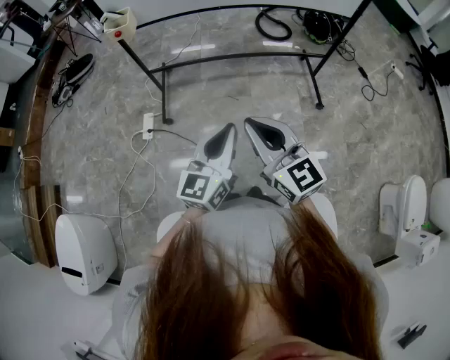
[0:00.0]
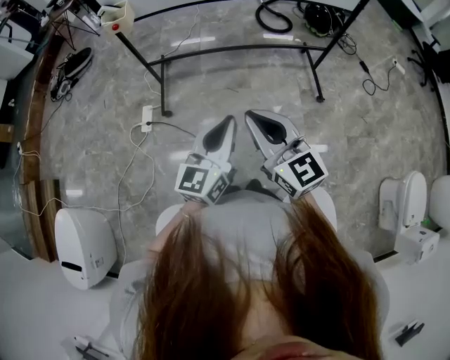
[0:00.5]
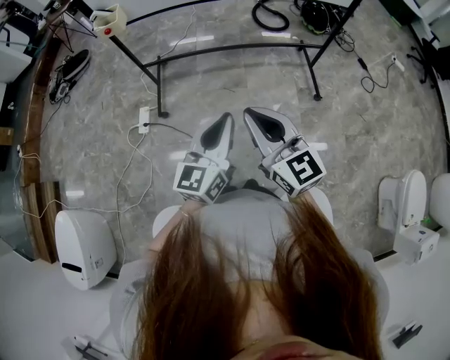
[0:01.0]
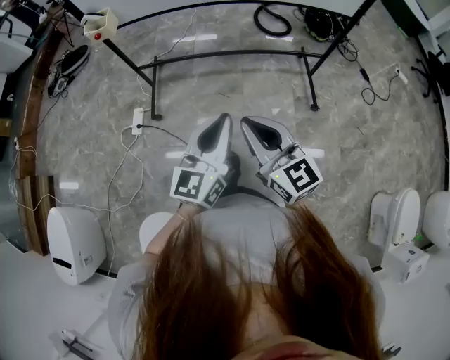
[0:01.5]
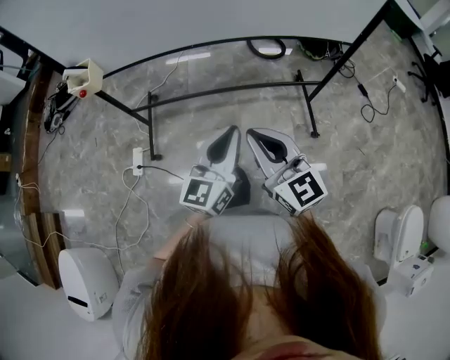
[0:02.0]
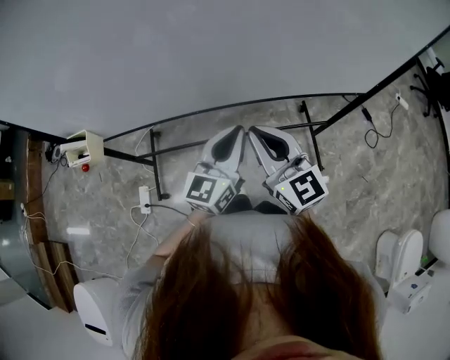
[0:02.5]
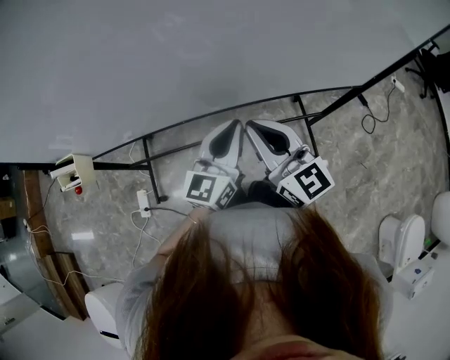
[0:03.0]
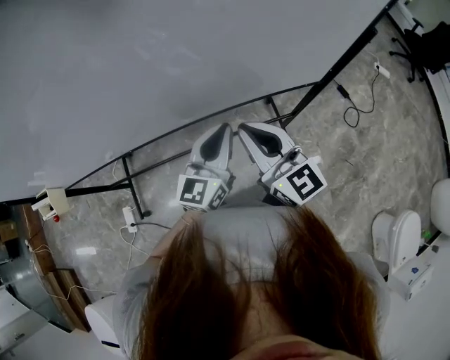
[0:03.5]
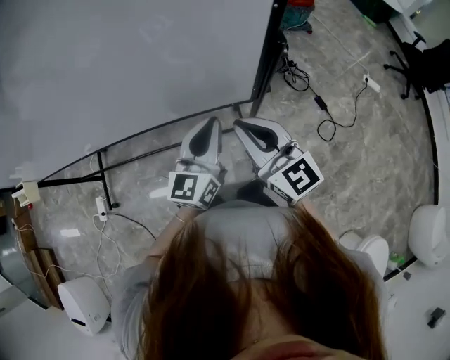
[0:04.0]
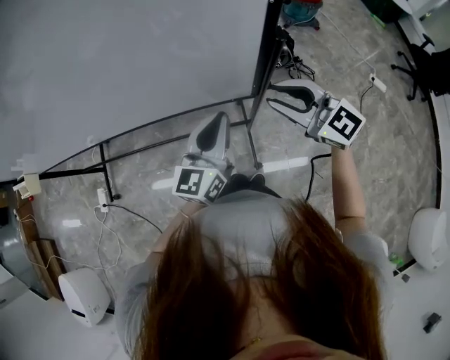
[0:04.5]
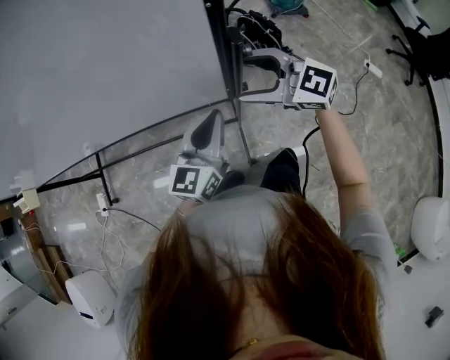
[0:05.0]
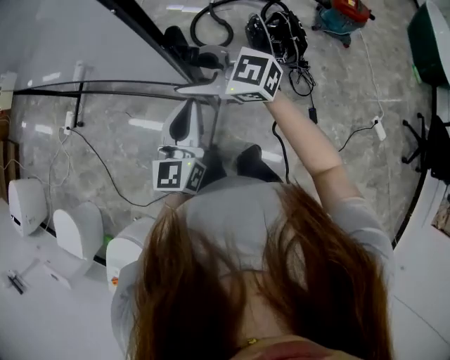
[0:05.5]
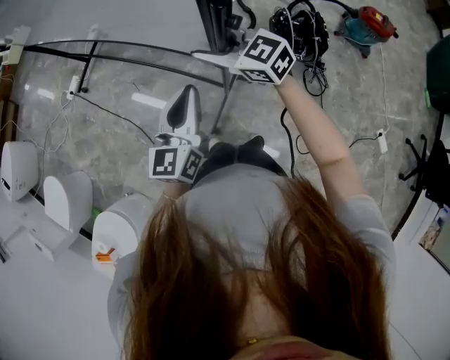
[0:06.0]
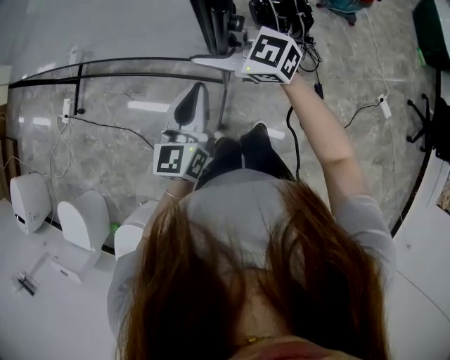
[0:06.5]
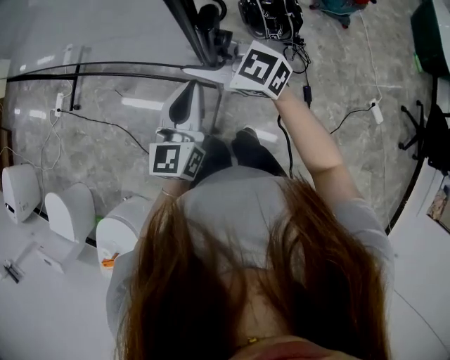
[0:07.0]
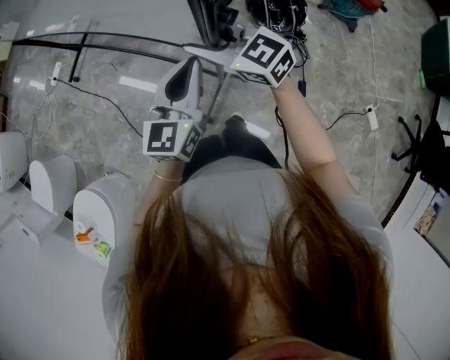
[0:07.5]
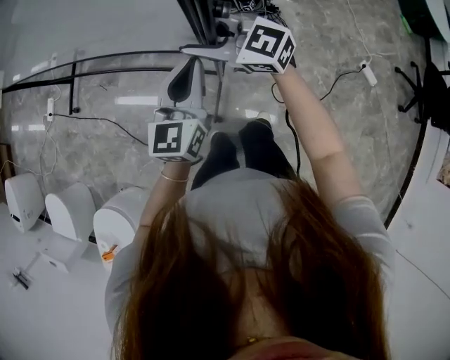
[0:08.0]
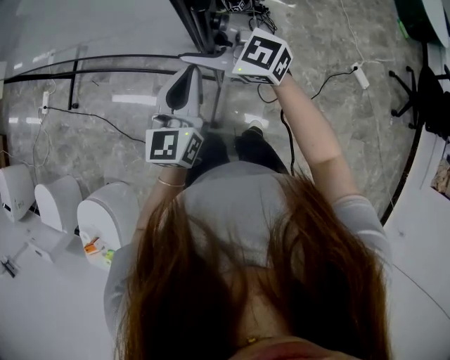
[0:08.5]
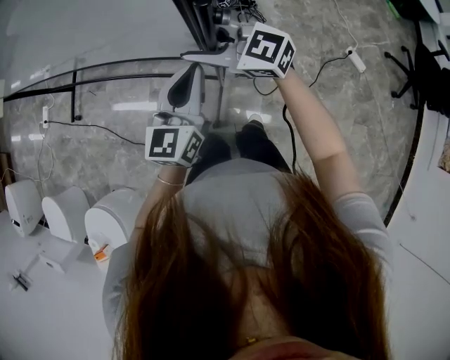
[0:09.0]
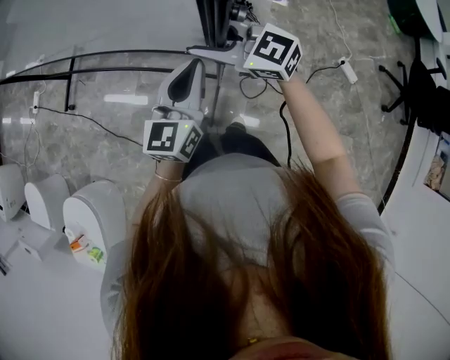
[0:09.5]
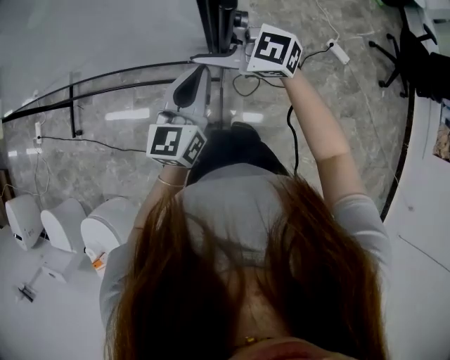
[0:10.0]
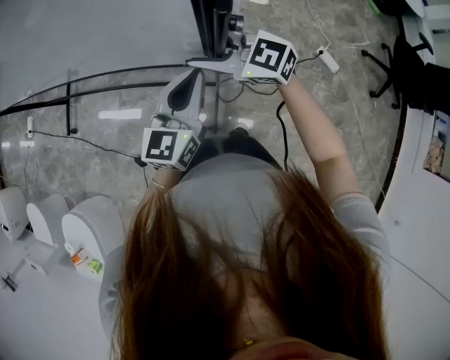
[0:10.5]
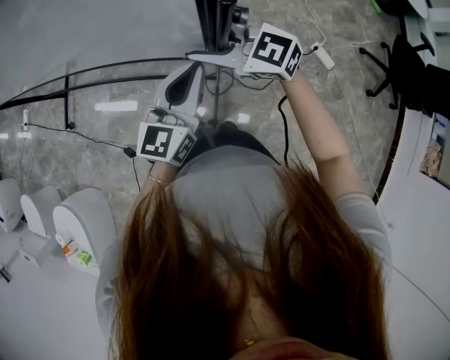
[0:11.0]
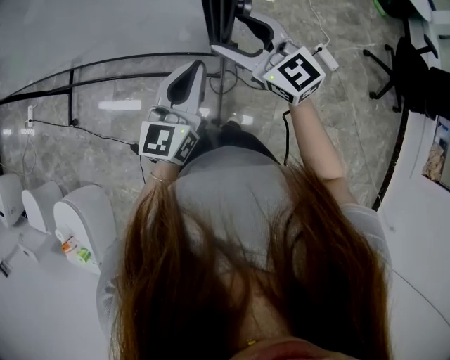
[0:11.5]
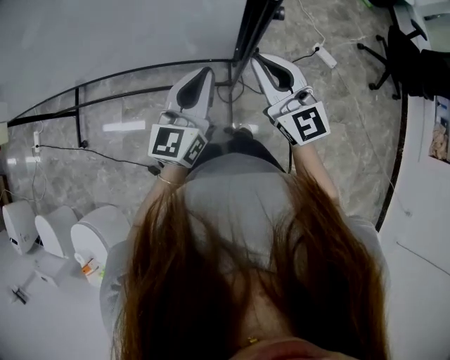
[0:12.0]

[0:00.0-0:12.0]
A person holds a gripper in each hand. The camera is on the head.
0:00.0 to 0:02.0: The grippers both shift forward and to the right by some 25 cm.
0:02.0 to 0:04.0: The two grippers travel together, to the right and forward, some 50 cm.
0:04.0 to 0:06.0: The left gripper moves approximately 10 cm, and swivels some 40 degrees. The right gripper travels downward by approximately 10 cm, rotates approximately 60 degrees, and opens up.
0:06.0 to 0:08.0: Both grippers move backward and to the right, roughly 25 cm.
0:08.0 to 0:10.0: Both grippers travel together to the right and backward, some 25 cm.
0:10.0 to 0:12.0: The left gripper changes place by some 10 cm, while the right gripper changes place by roughly 20 cm, changes its angle by some 50 degrees, and closes.

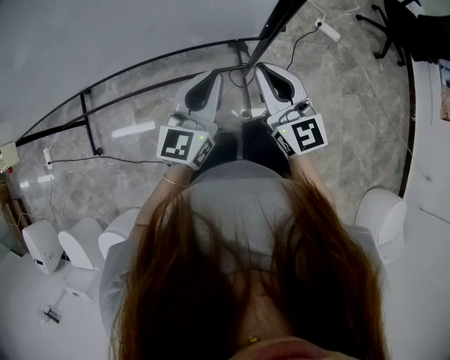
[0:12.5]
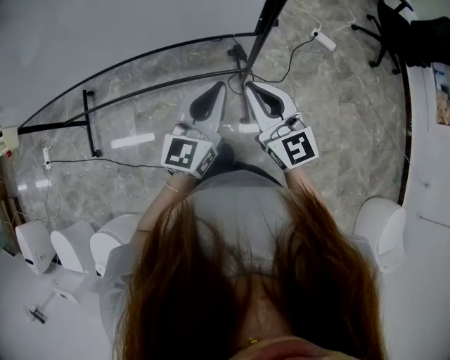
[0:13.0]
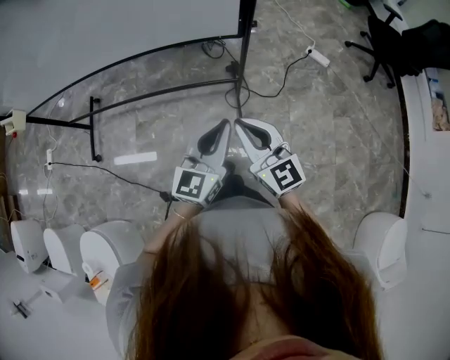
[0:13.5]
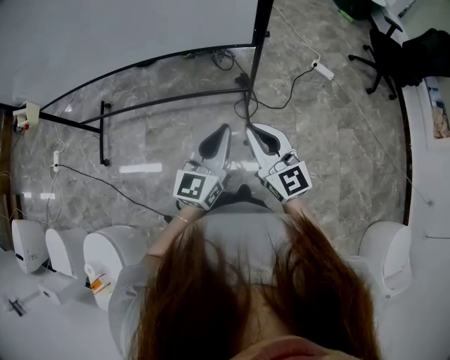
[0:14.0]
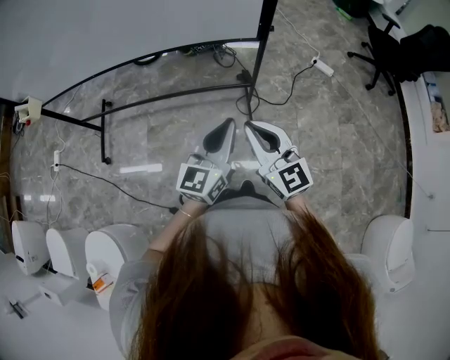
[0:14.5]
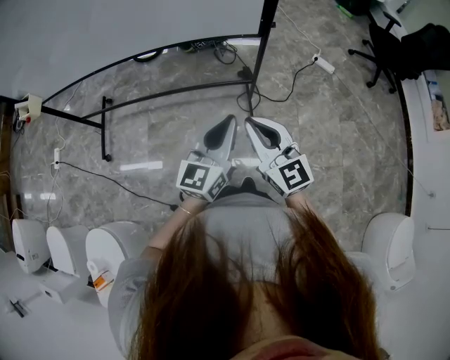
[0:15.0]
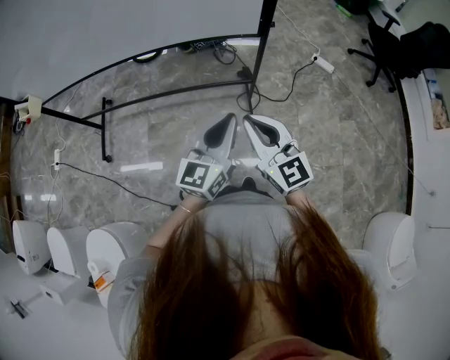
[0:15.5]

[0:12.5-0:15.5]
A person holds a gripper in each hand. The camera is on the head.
0:12.5 to 0:14.0: Both grippers travel together backward, approximately 25 cm.
0:14.0 to 0:15.5: The grippers move only a little.

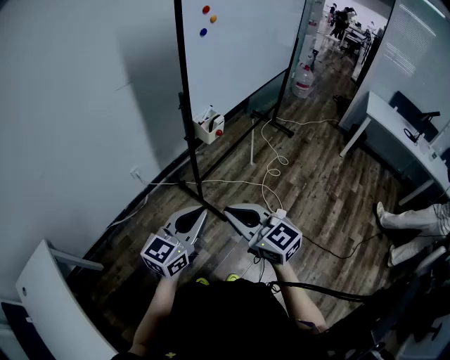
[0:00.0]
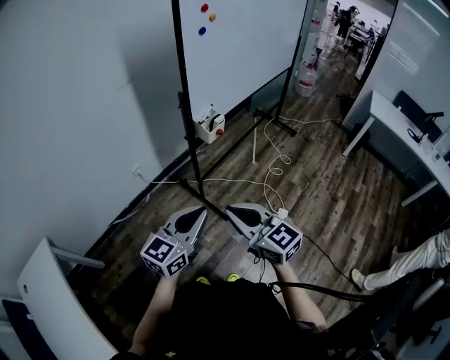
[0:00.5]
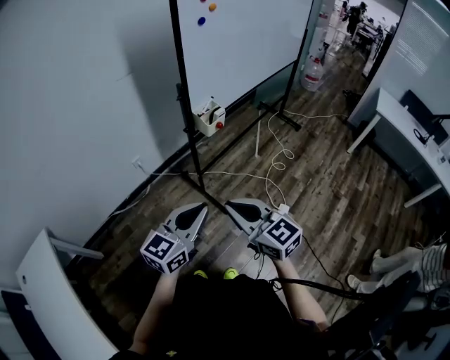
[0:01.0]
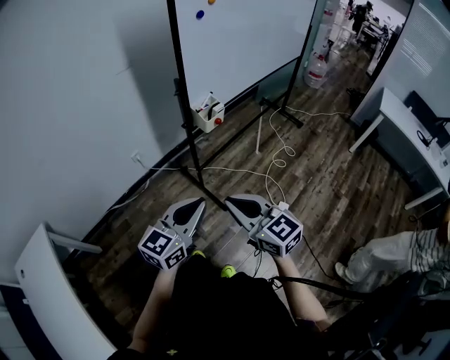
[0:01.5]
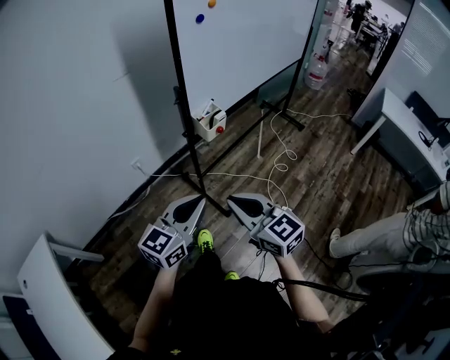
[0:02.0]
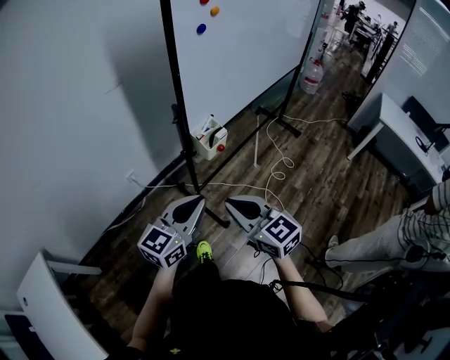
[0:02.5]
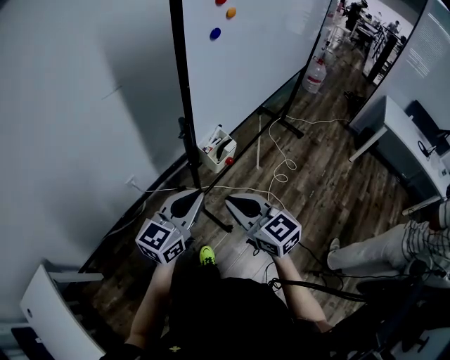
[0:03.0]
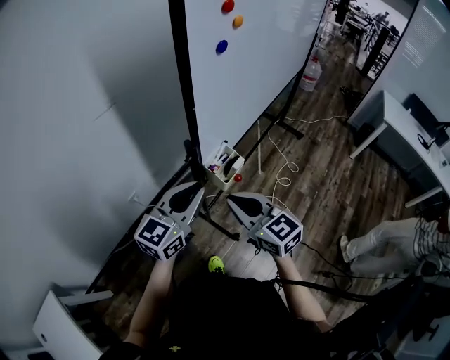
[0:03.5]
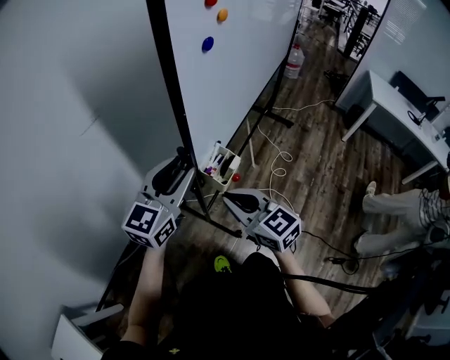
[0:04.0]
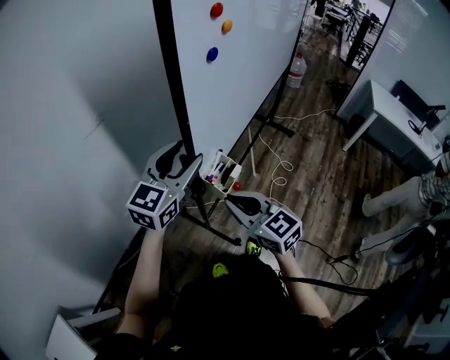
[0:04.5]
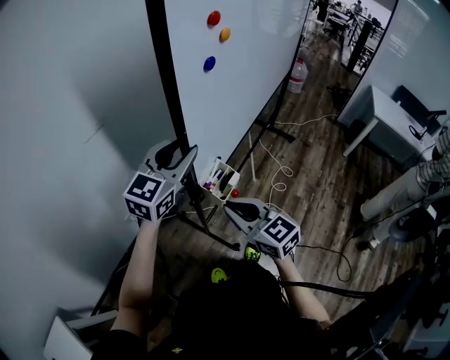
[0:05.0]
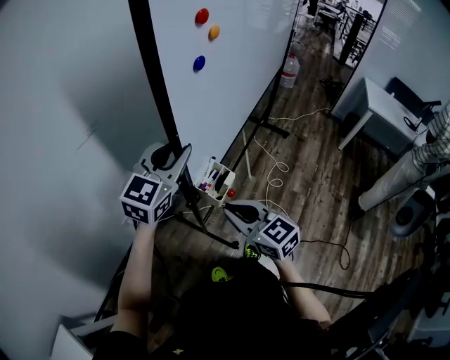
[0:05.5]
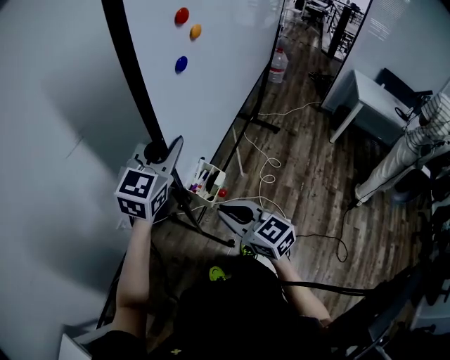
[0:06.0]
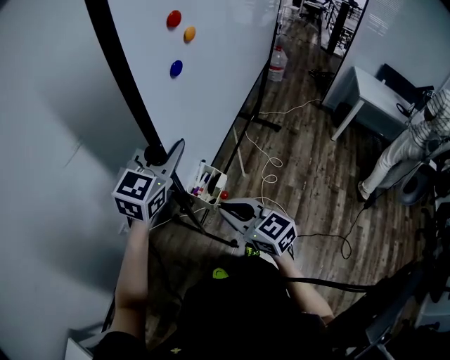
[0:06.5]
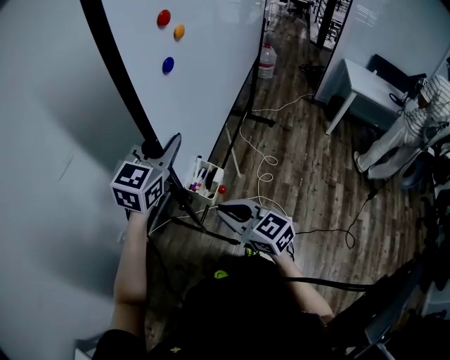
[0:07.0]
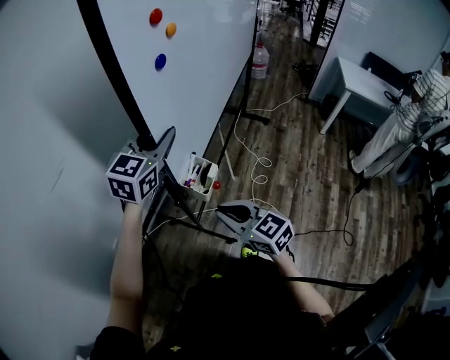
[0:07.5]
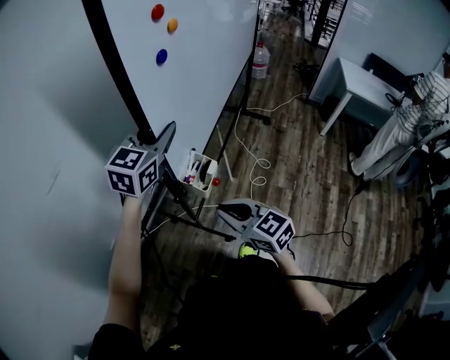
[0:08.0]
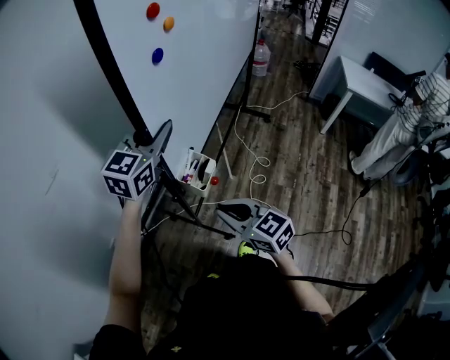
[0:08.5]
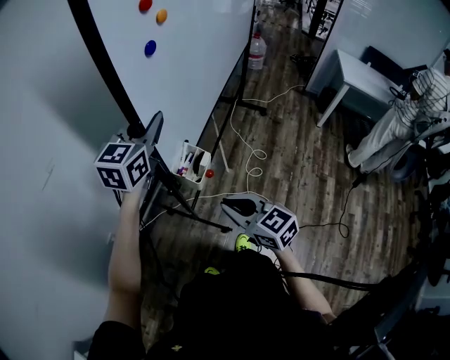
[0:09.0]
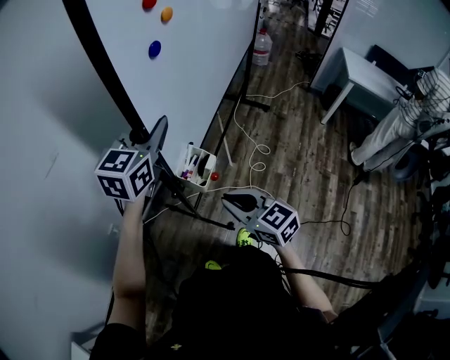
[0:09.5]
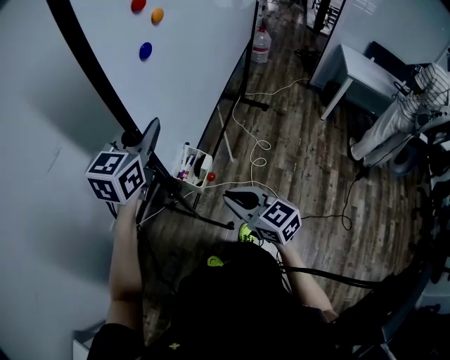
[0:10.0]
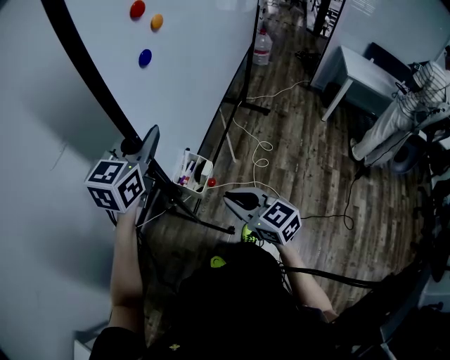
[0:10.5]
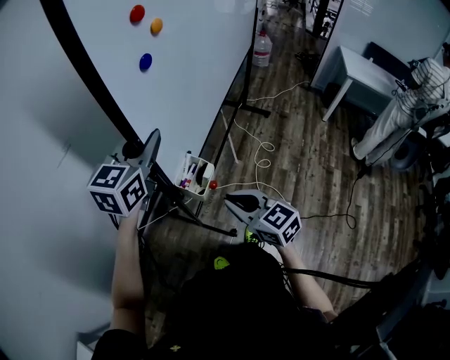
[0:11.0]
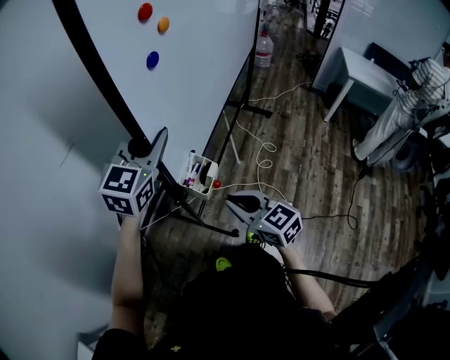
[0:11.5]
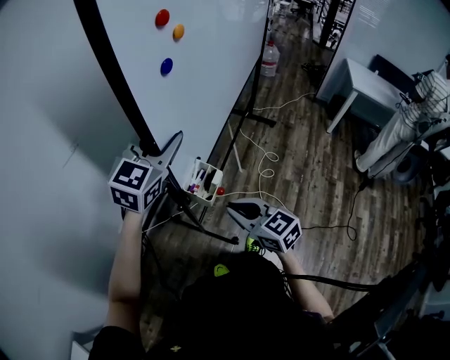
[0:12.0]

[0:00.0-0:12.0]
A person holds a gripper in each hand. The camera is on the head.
0:00.0 to 0:02.0: The two grippers go roughly 10 cm forward.
0:02.0 to 0:04.0: The grippers both shift forward by some 30 cm. The left gripper opens up.
0:04.0 to 0:06.0: The left gripper is displaced forward and to the right by some 10 cm.
0:06.0 to 0:08.0: The left gripper travels downward and forward by some 15 cm, while the right gripper is displaced downward by about 15 cm.
0:08.0 to 0:10.0: The grippers both shift upward by approximately 10 cm.
0:10.0 to 0:12.0: The left gripper changes place by some 5 cm, and opens up.
